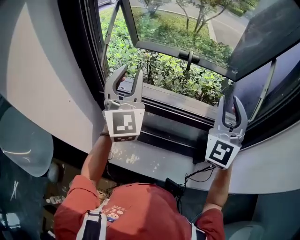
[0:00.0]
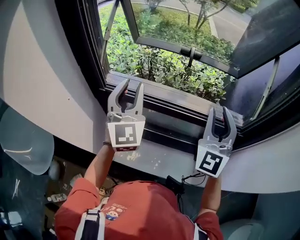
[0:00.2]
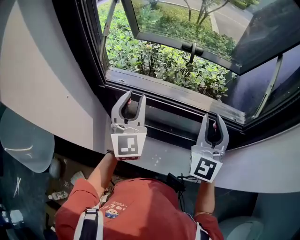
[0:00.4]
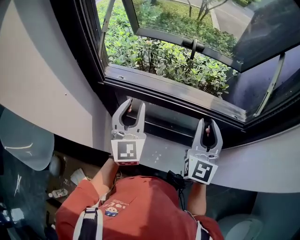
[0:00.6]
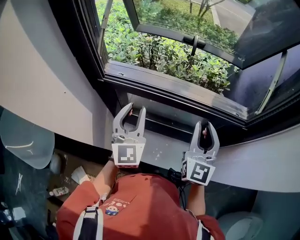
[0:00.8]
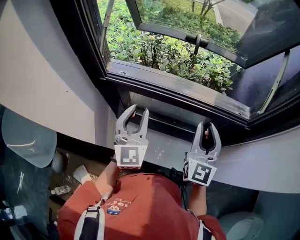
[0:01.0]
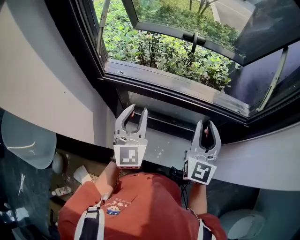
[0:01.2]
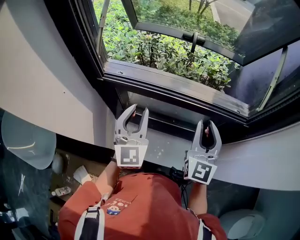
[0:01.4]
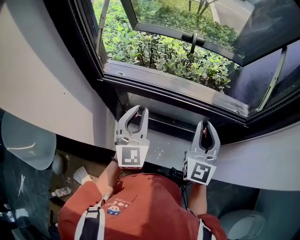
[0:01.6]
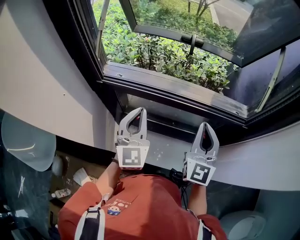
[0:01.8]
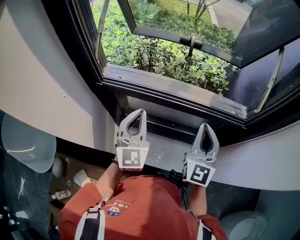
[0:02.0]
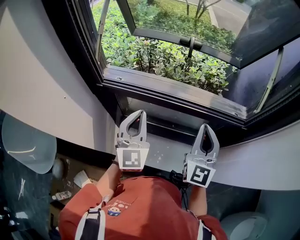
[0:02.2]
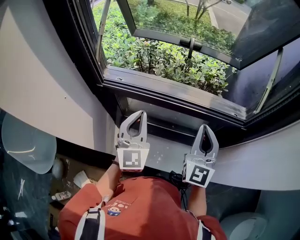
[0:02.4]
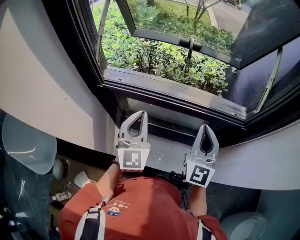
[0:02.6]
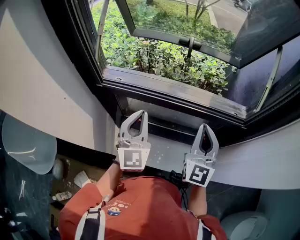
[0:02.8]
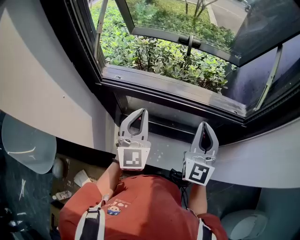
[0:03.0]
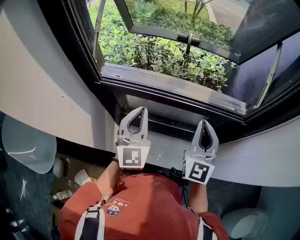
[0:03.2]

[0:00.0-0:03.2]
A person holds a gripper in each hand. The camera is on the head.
0:00.0 to 0:01.6: The right gripper heads downward, covering some 15 cm, and changes its angle by approximately 30 degrees; the left gripper is displaced downward and backward by about 20 cm.
0:01.6 to 0:03.2: There are only small adjustments of the grippers.

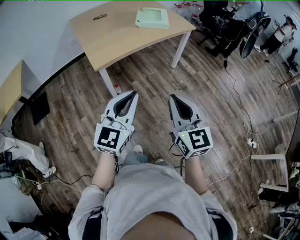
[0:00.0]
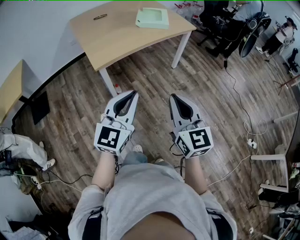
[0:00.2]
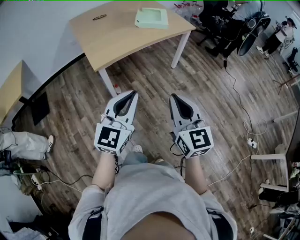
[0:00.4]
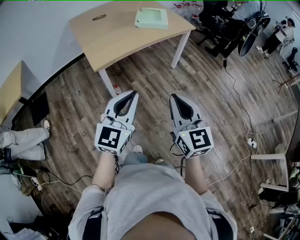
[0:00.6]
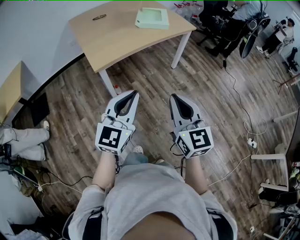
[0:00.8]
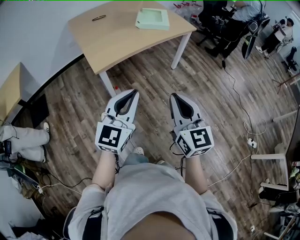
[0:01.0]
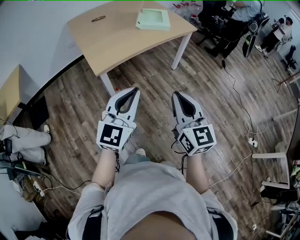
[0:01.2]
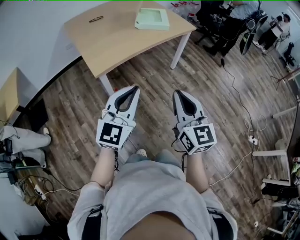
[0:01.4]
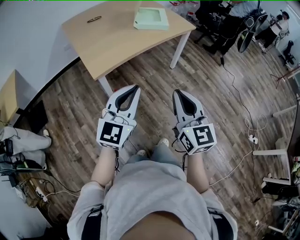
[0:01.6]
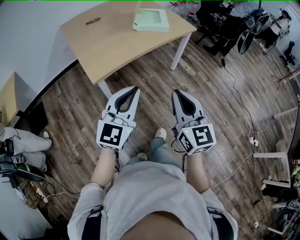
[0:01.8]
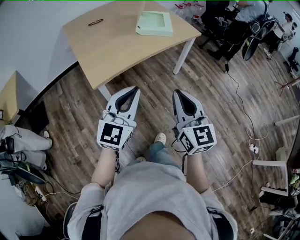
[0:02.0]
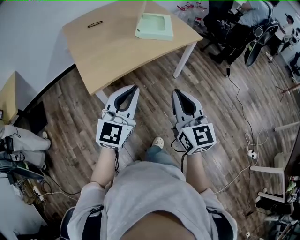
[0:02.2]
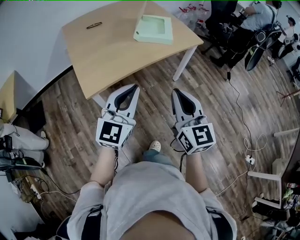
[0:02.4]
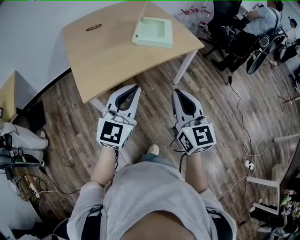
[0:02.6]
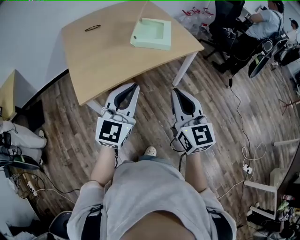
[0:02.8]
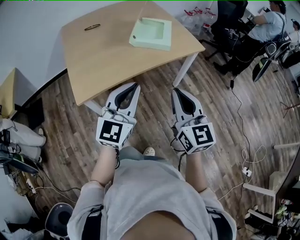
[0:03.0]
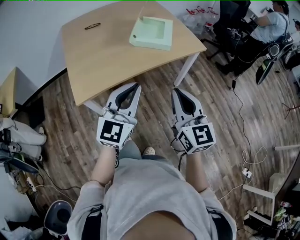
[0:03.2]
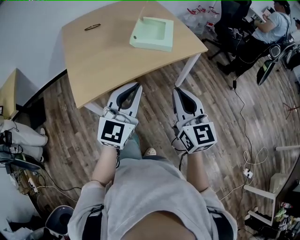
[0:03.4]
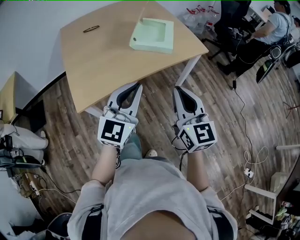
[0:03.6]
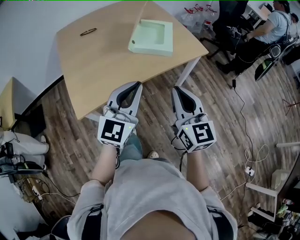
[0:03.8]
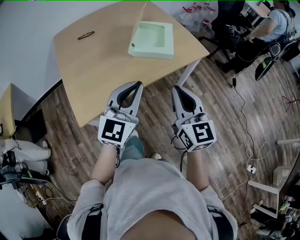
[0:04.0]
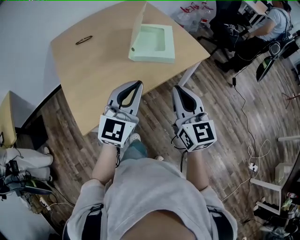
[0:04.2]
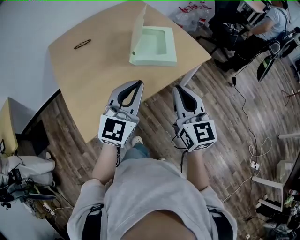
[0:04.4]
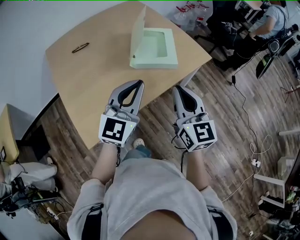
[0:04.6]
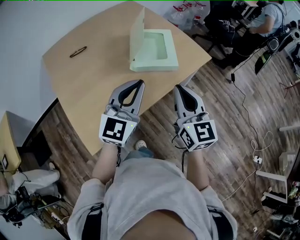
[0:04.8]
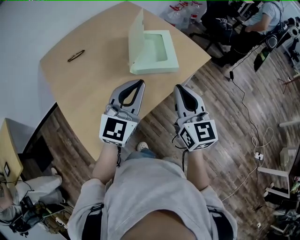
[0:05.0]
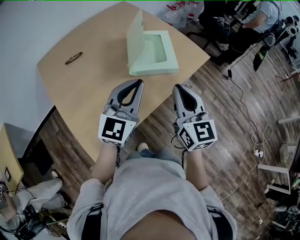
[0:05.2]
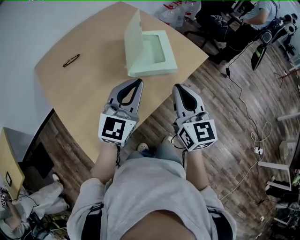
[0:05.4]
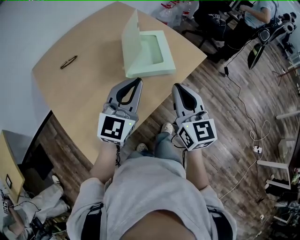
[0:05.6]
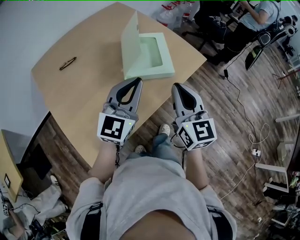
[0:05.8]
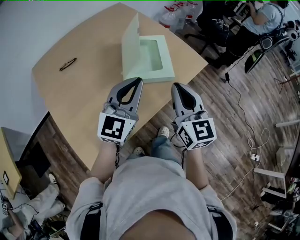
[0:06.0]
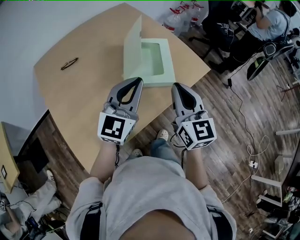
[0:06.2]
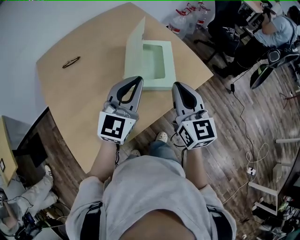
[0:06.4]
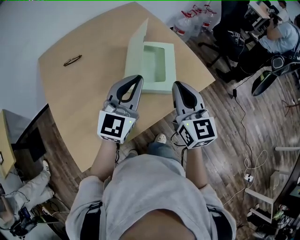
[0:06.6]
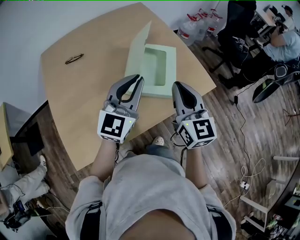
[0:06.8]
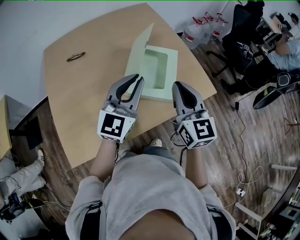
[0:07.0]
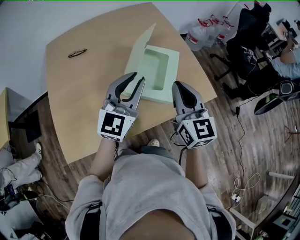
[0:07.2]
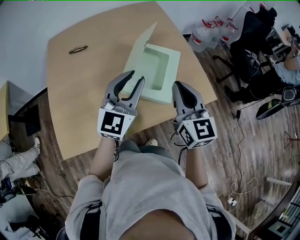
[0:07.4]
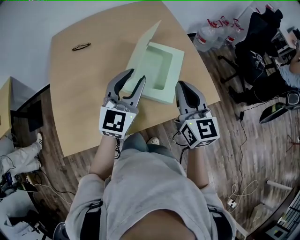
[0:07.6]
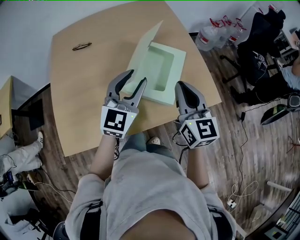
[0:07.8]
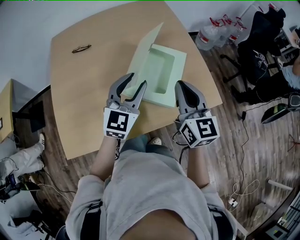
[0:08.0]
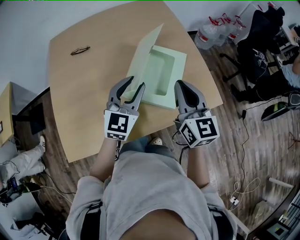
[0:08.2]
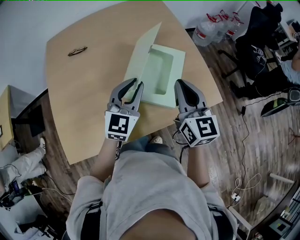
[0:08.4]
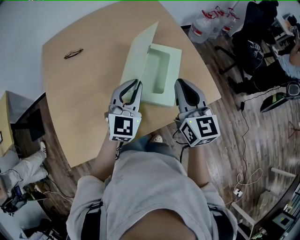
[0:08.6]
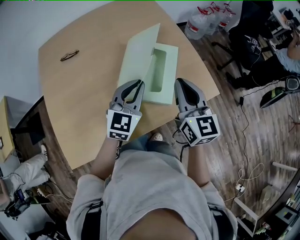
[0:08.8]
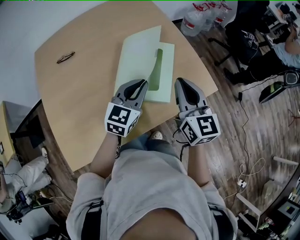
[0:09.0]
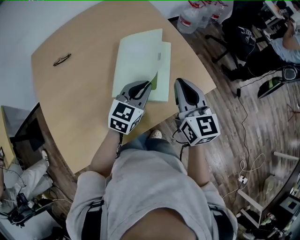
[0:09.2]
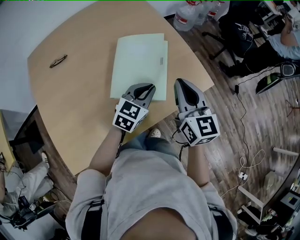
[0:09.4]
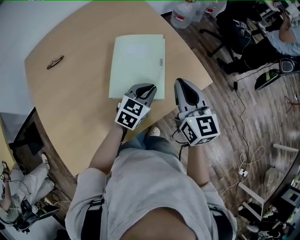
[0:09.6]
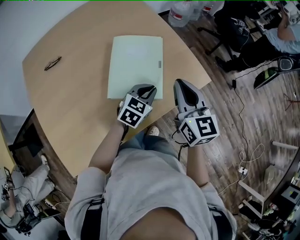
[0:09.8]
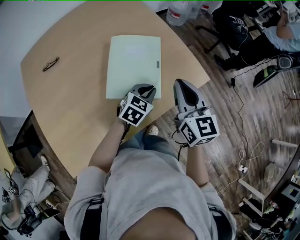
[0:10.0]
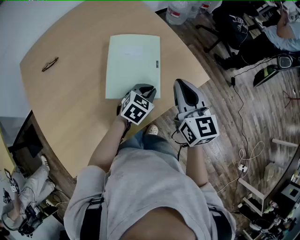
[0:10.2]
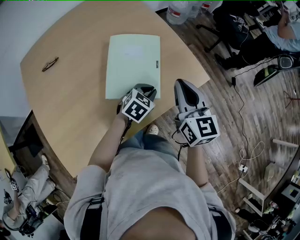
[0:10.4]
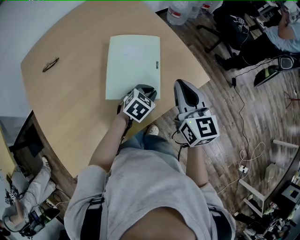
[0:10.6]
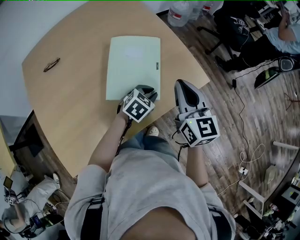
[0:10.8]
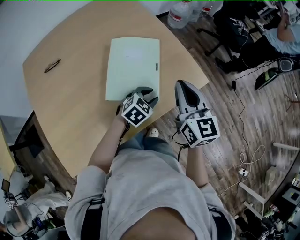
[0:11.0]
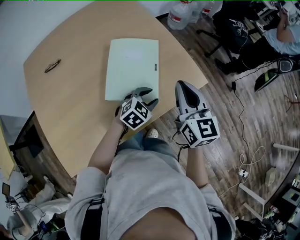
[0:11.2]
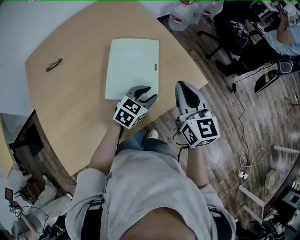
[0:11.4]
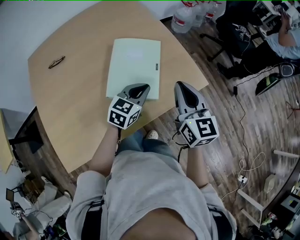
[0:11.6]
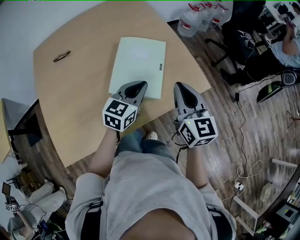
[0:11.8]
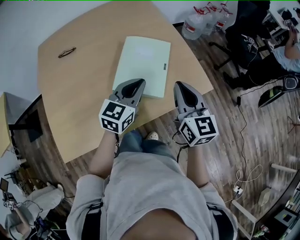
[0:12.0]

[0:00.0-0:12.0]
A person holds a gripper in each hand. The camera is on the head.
0:00.0 to 0:01.6: Both grippers move forward, some 10 cm.
0:01.6 to 0:03.0: The left gripper is displaced forward and to the right by some 25 cm, while the right gripper heads forward, covering about 25 cm.
0:03.0 to 0:04.4: The grippers both shift forward by approximately 20 cm.
0:04.4 to 0:06.0: The grippers both shift forward by some 15 cm.
0:06.0 to 0:07.6: The left gripper heads forward, covering roughly 15 cm, turns by about 30 degrees, and opens its fingers. The right gripper travels forward and to the right by roughly 15 cm, and turns by roughly 20 degrees.
0:07.6 to 0:09.0: The left gripper is displaced downward by approximately 10 cm, turns by approximately 20 degrees, and closes up.
0:09.0 to 0:10.4: The left gripper heads downward and to the right, covering about 15 cm, and changes its angle by roughly 40 degrees. Meanwhile the right gripper travels to the right by roughly 5 cm.
0:10.4 to 0:12.0: The left gripper heads upward and to the left, covering some 15 cm, angles its fingers upward, by roughly 30 degrees, and opens, then closes again.

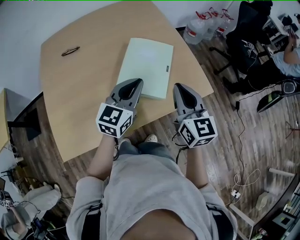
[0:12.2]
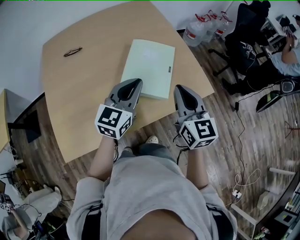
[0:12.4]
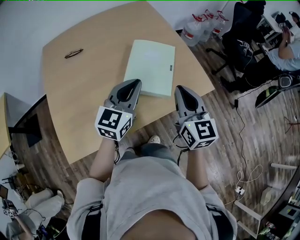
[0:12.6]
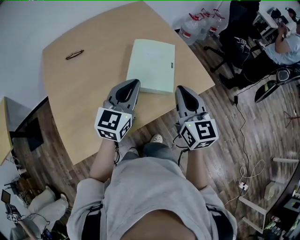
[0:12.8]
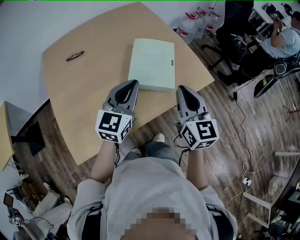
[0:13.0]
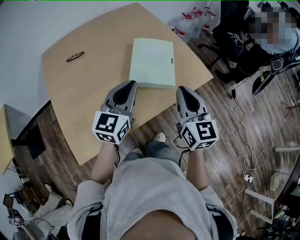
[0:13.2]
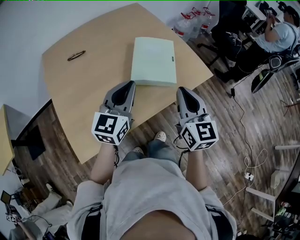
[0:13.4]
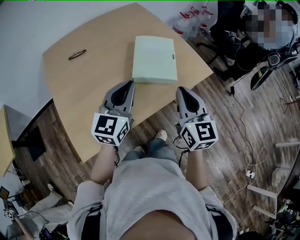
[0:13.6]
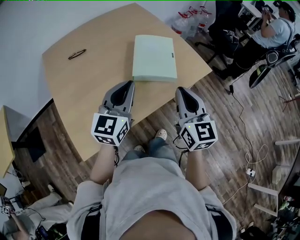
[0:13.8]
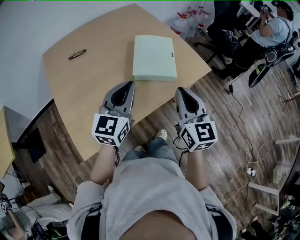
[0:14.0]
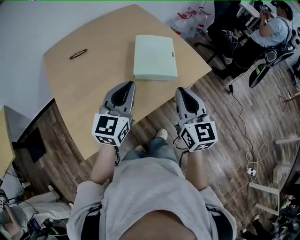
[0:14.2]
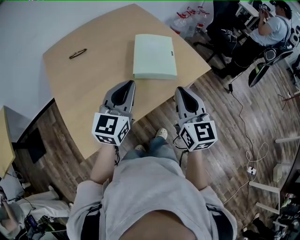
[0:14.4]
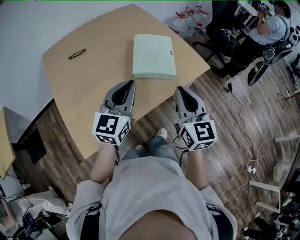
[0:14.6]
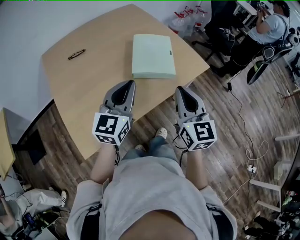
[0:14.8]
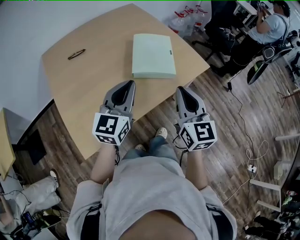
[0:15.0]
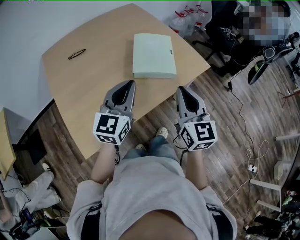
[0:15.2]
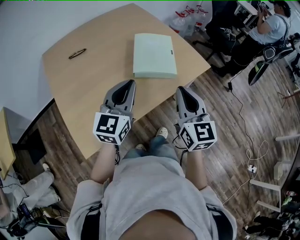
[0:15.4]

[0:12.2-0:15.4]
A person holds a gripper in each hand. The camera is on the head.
0:12.2 to 0:13.8: The left gripper travels backward, to the left and upward by roughly 20 cm. The right gripper moves backward and to the left, roughly 20 cm.
0:13.8 to 0:15.4: The grippers stay close to where they were, moving slightly.

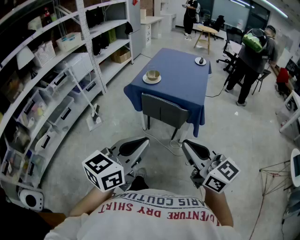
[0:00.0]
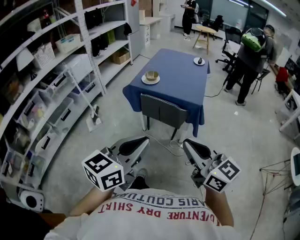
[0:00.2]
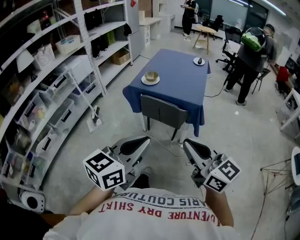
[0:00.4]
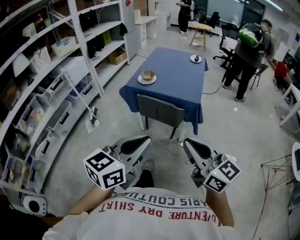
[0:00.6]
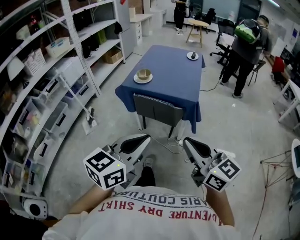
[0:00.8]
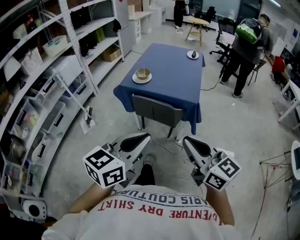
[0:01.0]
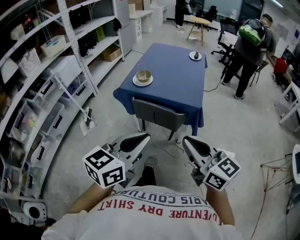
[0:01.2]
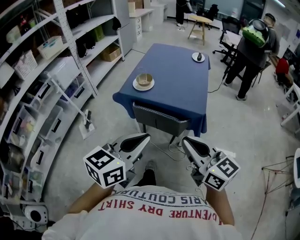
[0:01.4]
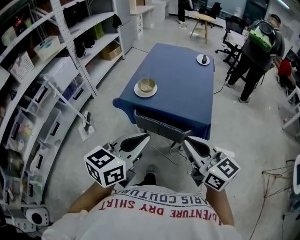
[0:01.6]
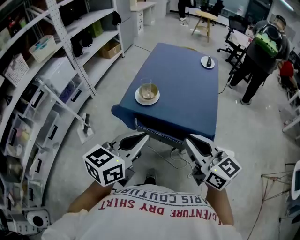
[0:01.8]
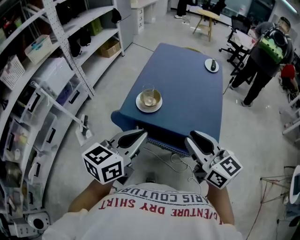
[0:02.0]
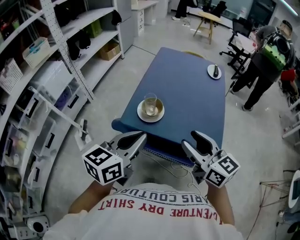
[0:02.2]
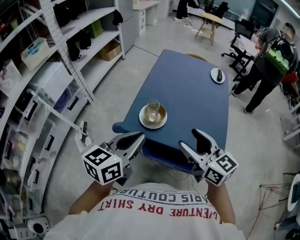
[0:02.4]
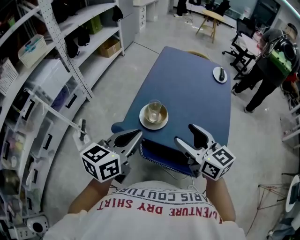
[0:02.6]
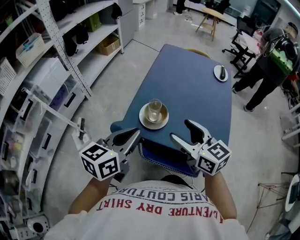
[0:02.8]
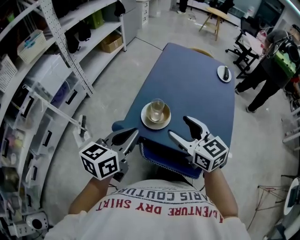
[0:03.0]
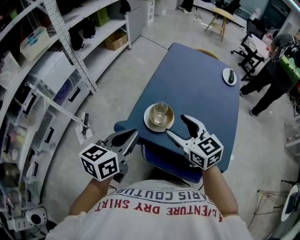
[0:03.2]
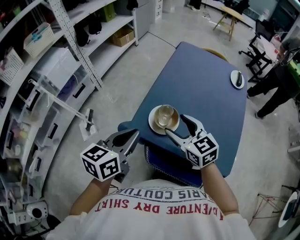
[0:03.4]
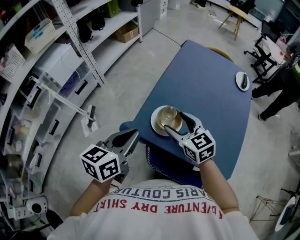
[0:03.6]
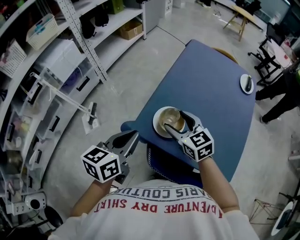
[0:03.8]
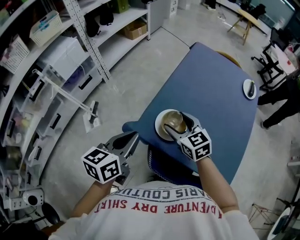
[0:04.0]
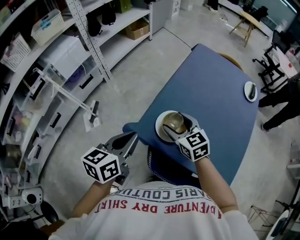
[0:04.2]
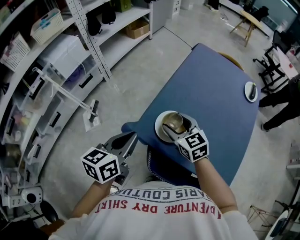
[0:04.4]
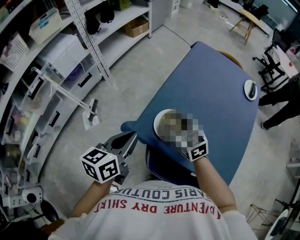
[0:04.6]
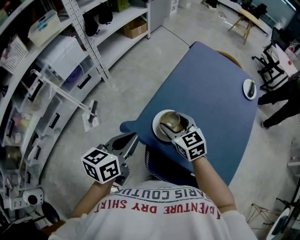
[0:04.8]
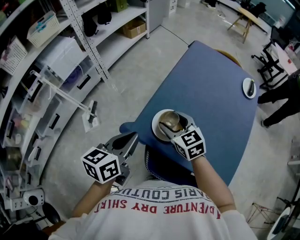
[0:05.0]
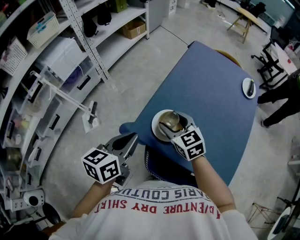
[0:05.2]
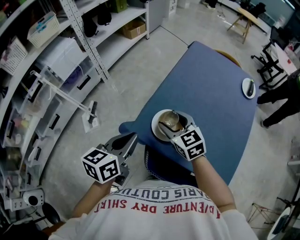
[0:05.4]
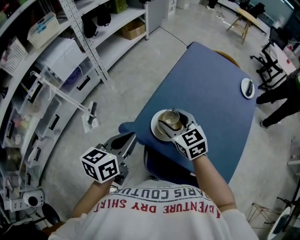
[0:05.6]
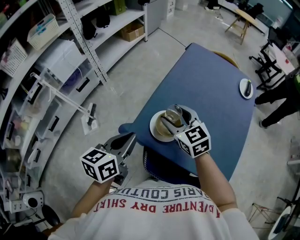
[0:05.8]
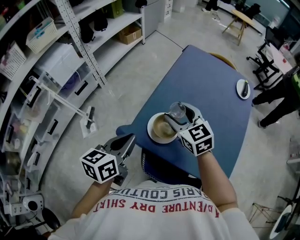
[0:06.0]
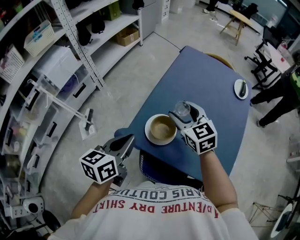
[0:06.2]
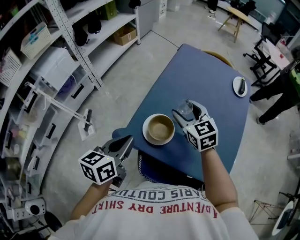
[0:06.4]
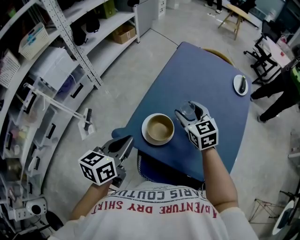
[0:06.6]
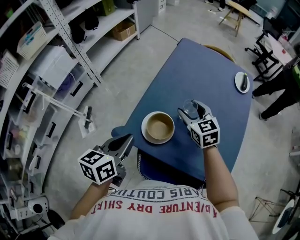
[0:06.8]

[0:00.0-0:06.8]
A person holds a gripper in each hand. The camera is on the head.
0:00.0 to 0:01.4: Both grippers travel together forward, roughly 15 cm.
0:01.4 to 0:02.8: The grippers both shift forward by roughly 35 cm. The right gripper opens up.
0:02.8 to 0:04.0: The right gripper heads forward, downward and to the left, covering about 20 cm, and changes its angle by roughly 20 degrees. The left gripper travels to the left and forward by about 10 cm.
0:04.0 to 0:05.4: The grippers make only small movements.
0:05.4 to 0:06.8: The right gripper is displaced to the right and forward by some 15 cm.
